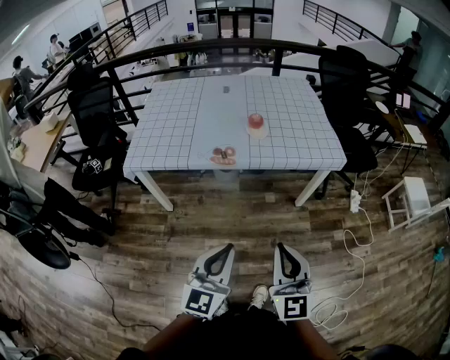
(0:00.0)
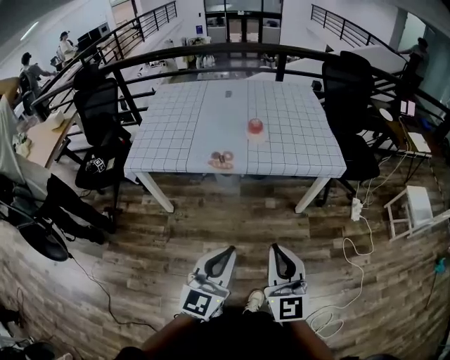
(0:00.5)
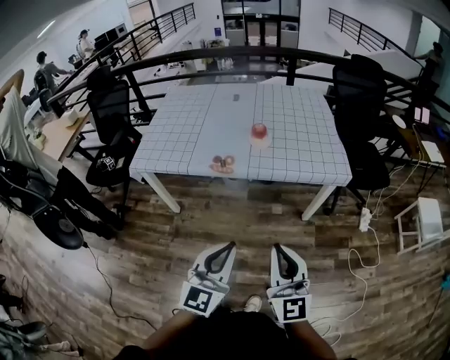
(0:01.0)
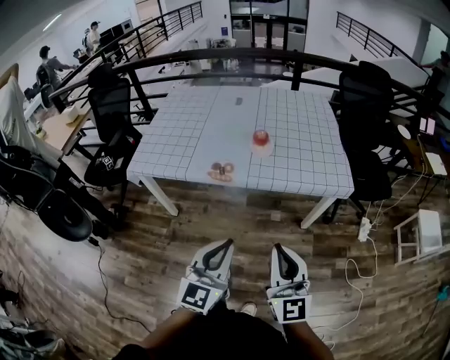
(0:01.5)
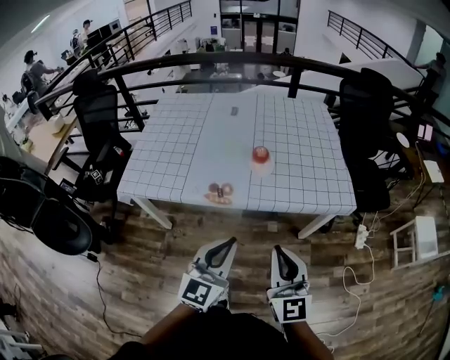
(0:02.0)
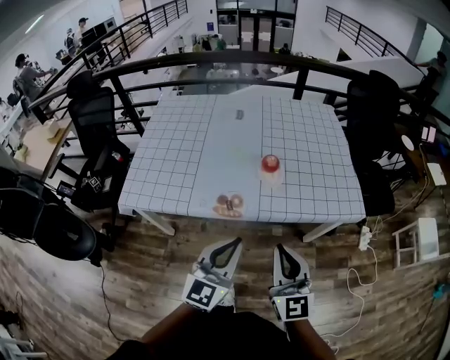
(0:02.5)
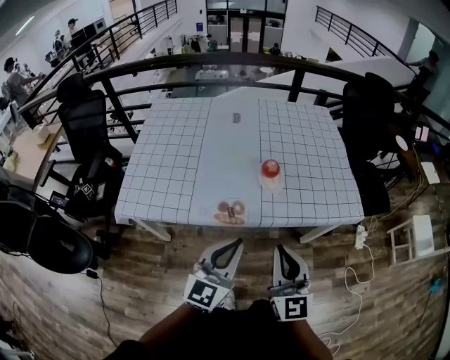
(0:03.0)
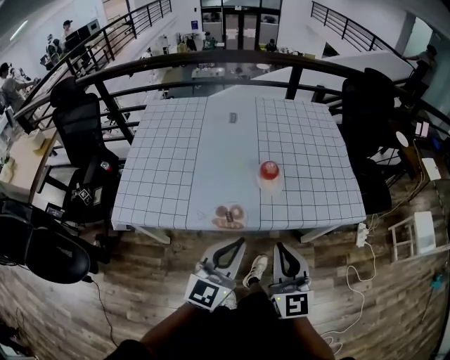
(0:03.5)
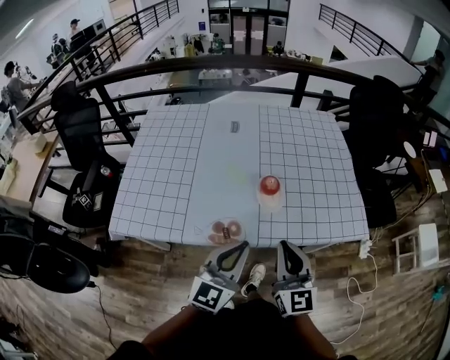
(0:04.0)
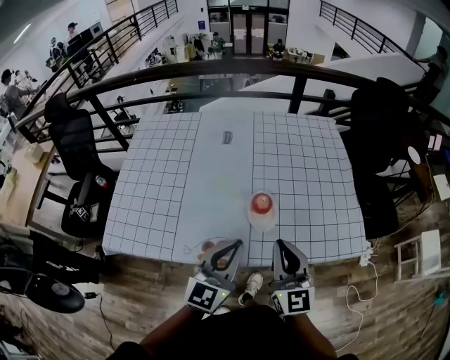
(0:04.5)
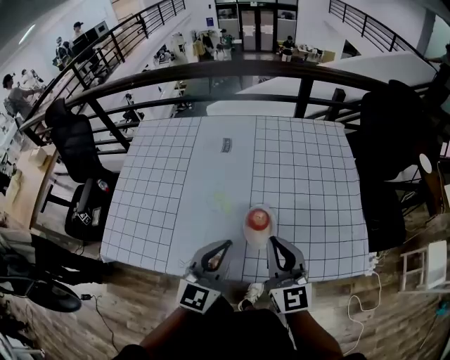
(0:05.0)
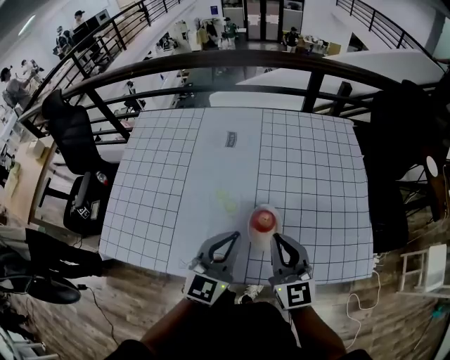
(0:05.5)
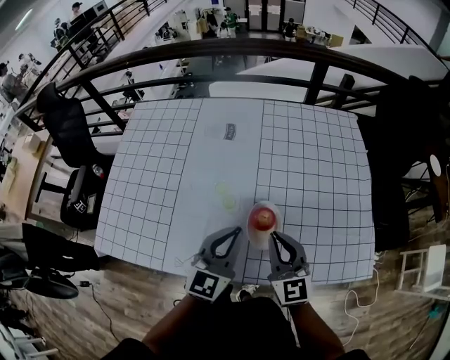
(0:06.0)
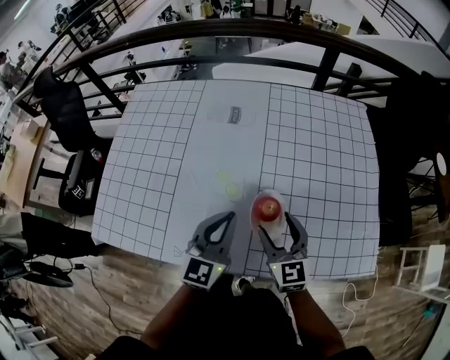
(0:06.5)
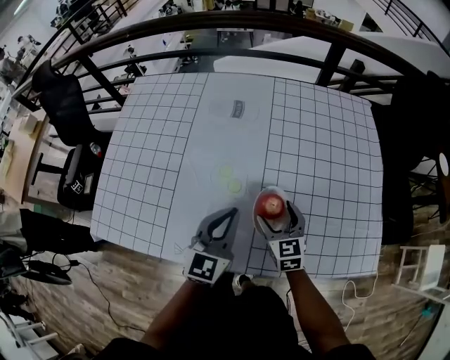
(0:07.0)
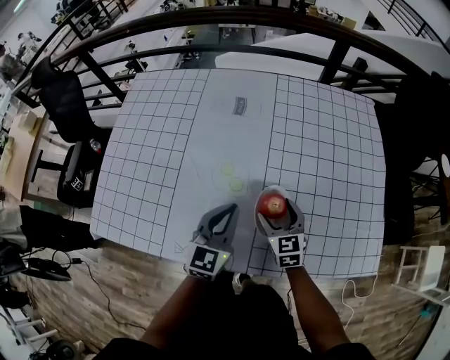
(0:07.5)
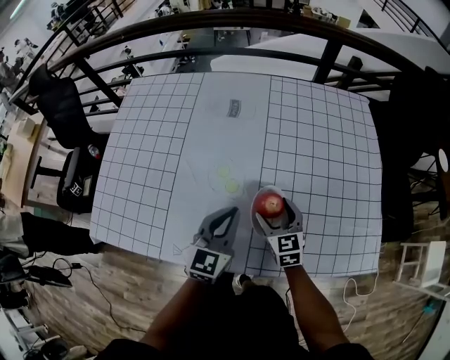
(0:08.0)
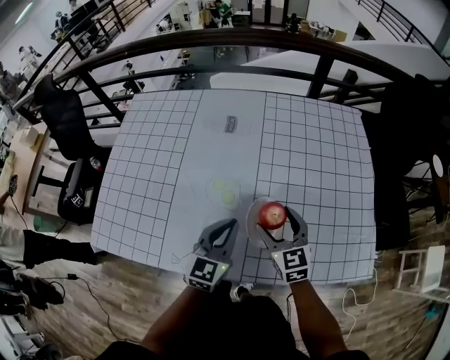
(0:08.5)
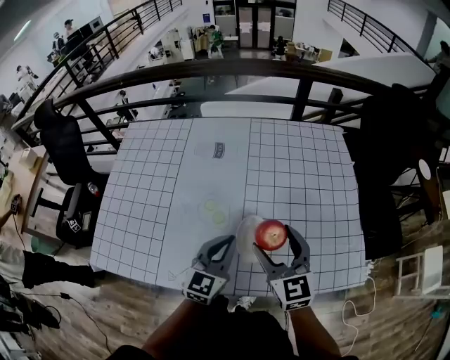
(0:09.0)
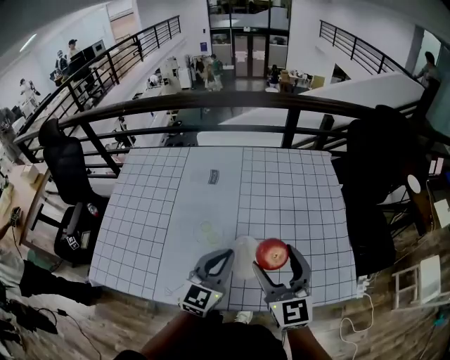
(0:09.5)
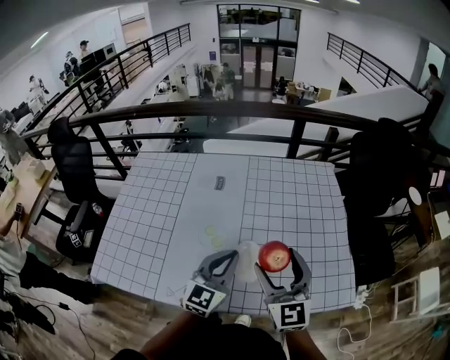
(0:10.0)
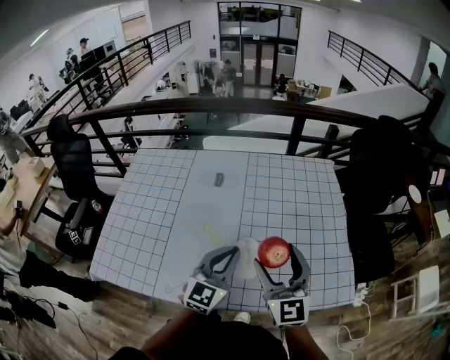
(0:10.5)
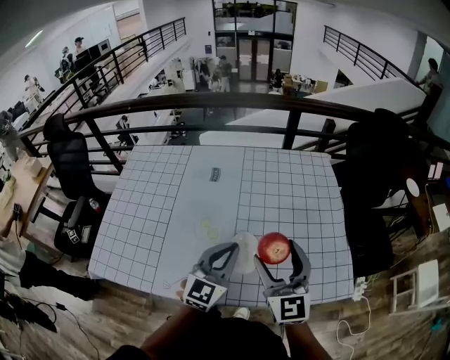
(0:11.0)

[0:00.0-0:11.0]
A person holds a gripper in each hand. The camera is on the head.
0:00.0 to 0:02.0: The two grippers go about 20 cm forward.
0:02.0 to 0:03.5: The grippers both shift forward and to the left by approximately 15 cm.
0:03.5 to 0:05.5: The two grippers go roughly 30 cm forward.
0:05.5 to 0:07.5: The left gripper travels downward and forward by approximately 10 cm. Meanwhile the right gripper travels downward by some 20 cm, swivels some 30 degrees, and opens its fingers.
0:07.5 to 0:09.0: The right gripper is displaced upward by roughly 20 cm. The left gripper heads to the right, covering approximately 5 cm.
0:09.0 to 0:11.0: The two grippers go some 10 cm upward.

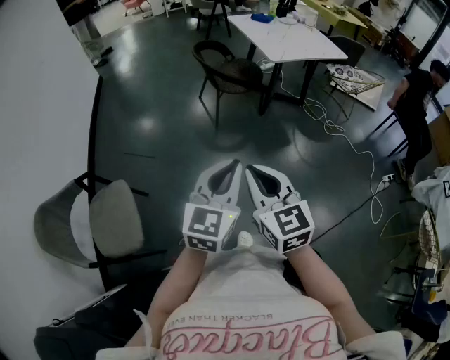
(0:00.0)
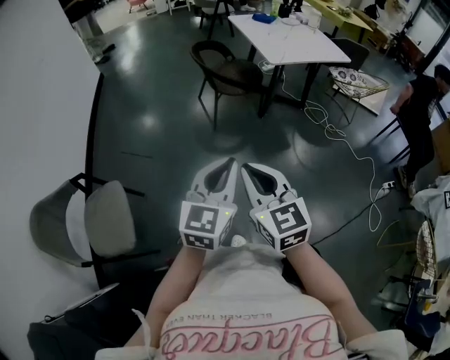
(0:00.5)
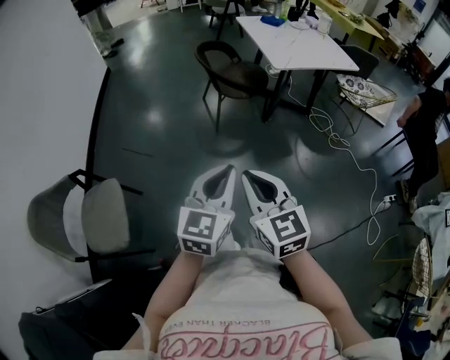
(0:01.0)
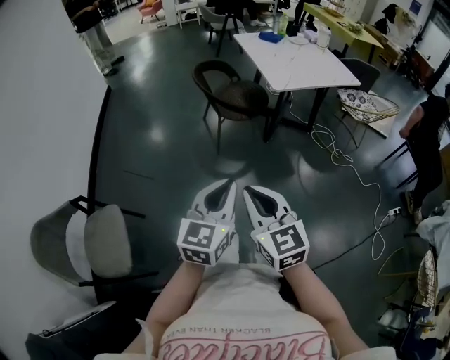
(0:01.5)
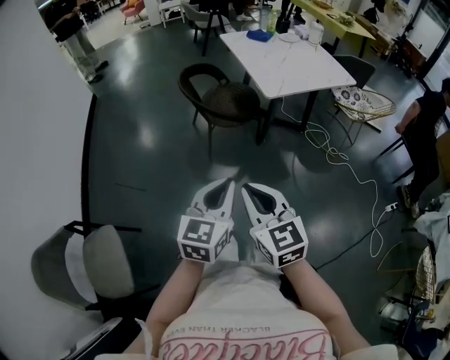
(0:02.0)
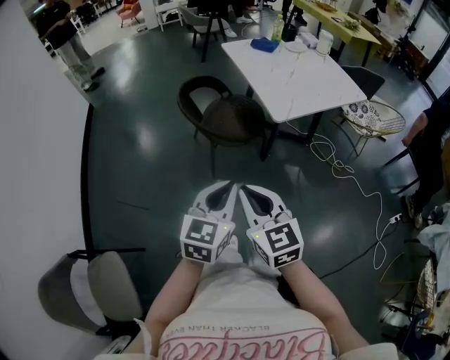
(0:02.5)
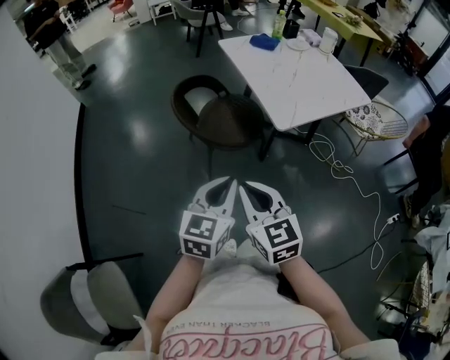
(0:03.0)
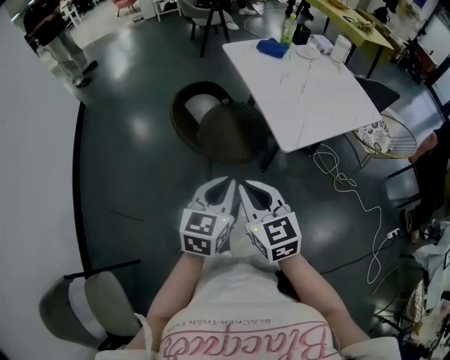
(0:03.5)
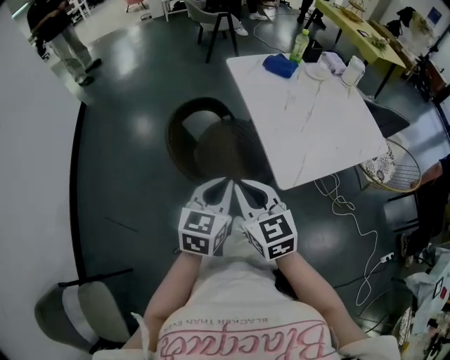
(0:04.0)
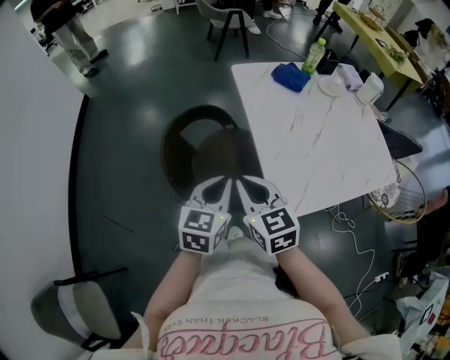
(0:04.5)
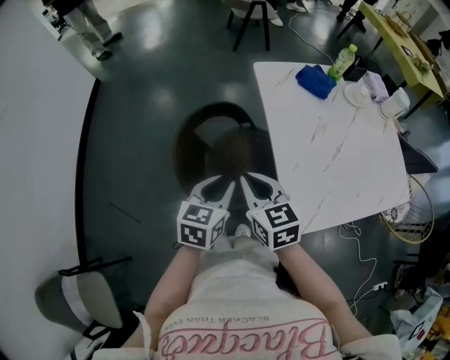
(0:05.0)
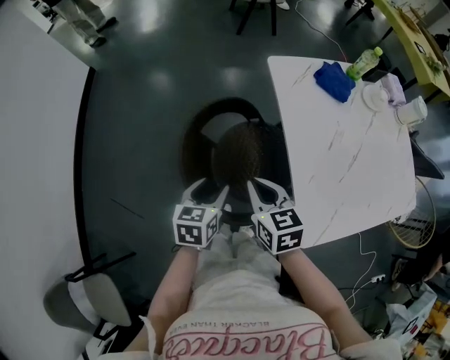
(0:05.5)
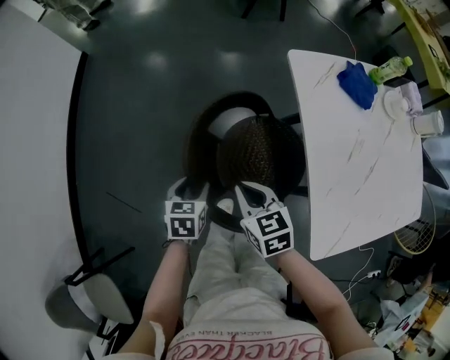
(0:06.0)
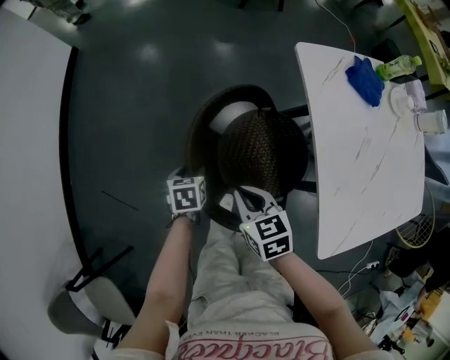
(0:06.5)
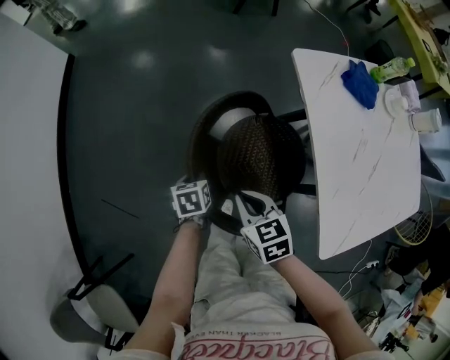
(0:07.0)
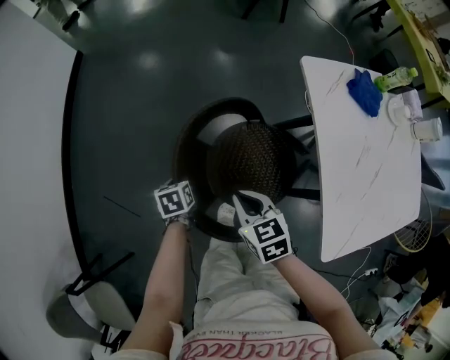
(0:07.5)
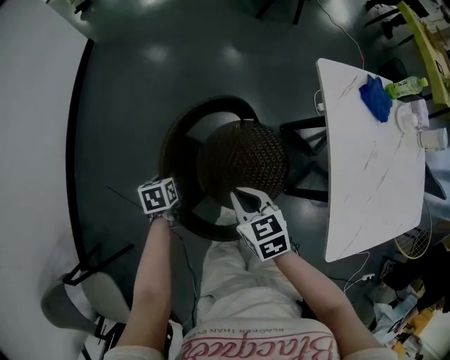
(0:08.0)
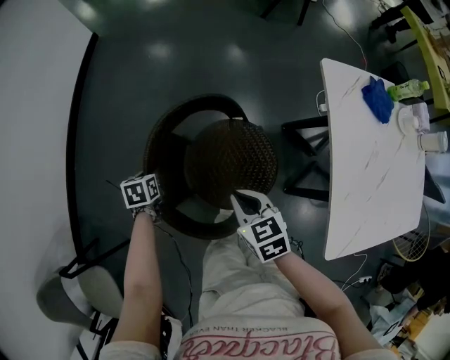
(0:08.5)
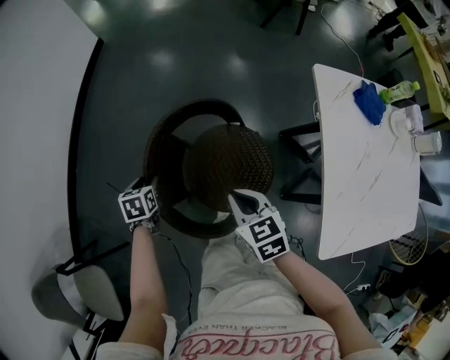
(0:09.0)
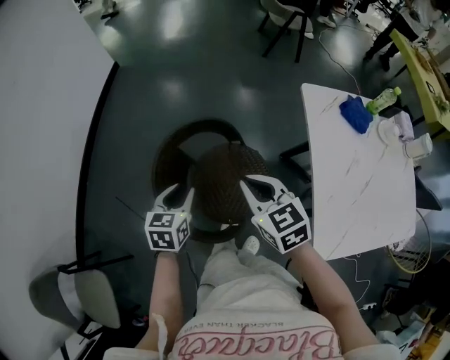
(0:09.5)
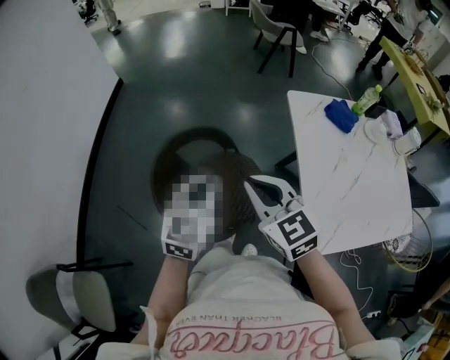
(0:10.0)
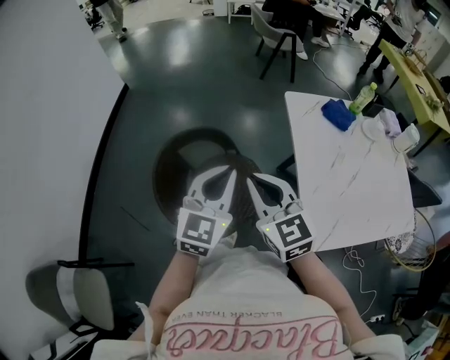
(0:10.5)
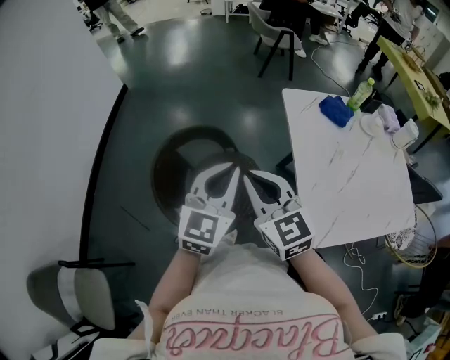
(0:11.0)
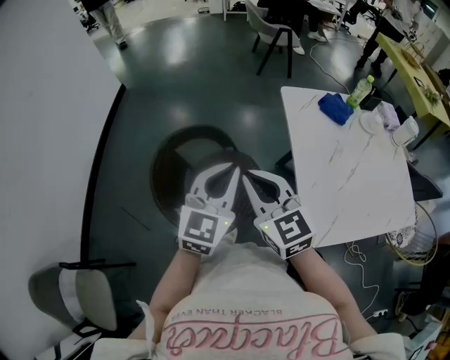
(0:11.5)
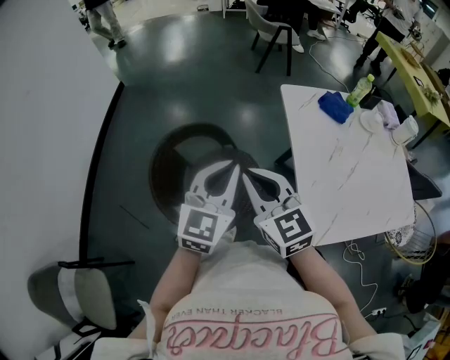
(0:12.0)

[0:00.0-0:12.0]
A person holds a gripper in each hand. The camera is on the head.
0:00.0 to 0:02.0: The two grippers go some 25 cm forward.
0:02.0 to 0:04.0: Both grippers are carried forward, about 50 cm.
0:04.0 to 0:06.0: The right gripper travels forward and downward by approximately 35 cm, and rotates approximately 30 degrees; the left gripper is displaced forward, downward and to the left by about 40 cm, points its fingers roughly 30 degrees further downward, and opens its fingers.
0:06.0 to 0:08.0: The right gripper goes roughly 10 cm to the left. Meanwhile the left gripper travels to the left and downward by about 20 cm, swivels about 20 degrees, and closes up.
0:08.0 to 0:10.0: The left gripper shifts roughly 40 cm upward, to the right and backward, tips its fingers upward by some 50 degrees, and opens, then closes once more. The right gripper goes about 25 cm upward and backward, and changes its angle by approximately 30 degrees.
0:10.0 to 0:12.0: The left gripper heads to the right, covering roughly 5 cm.

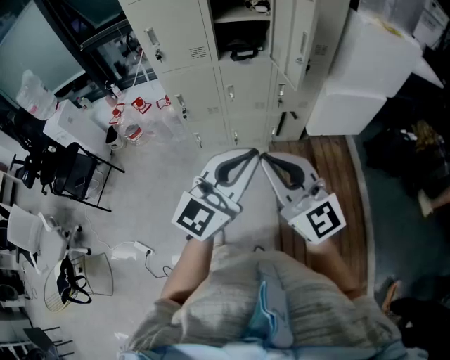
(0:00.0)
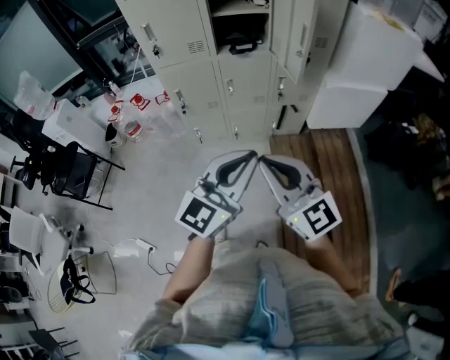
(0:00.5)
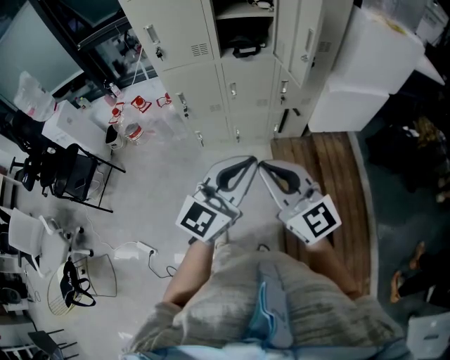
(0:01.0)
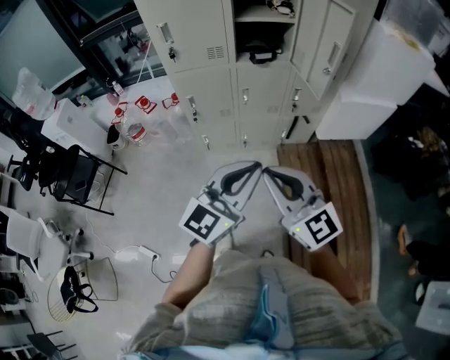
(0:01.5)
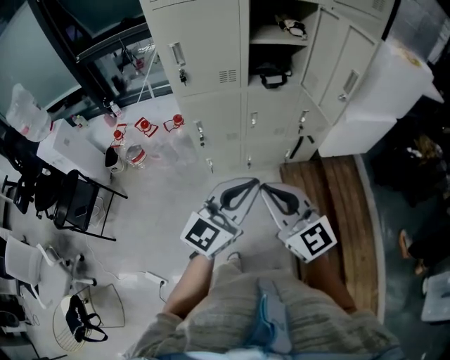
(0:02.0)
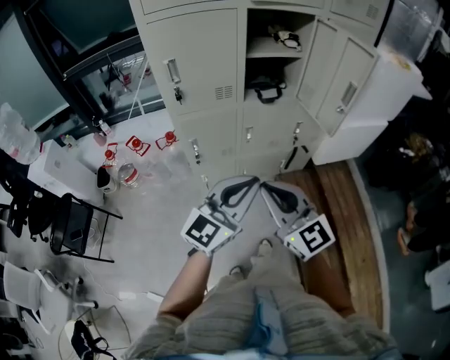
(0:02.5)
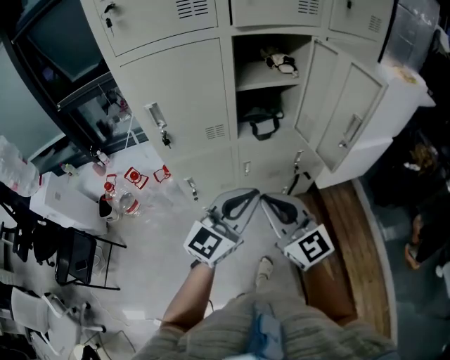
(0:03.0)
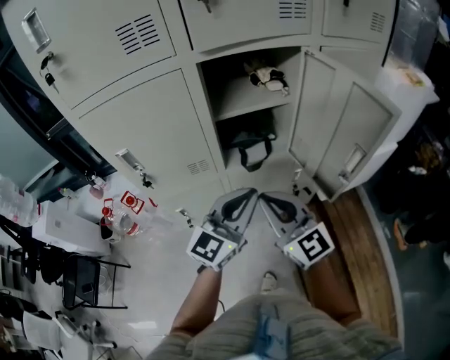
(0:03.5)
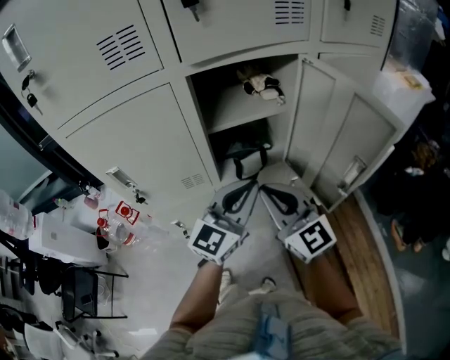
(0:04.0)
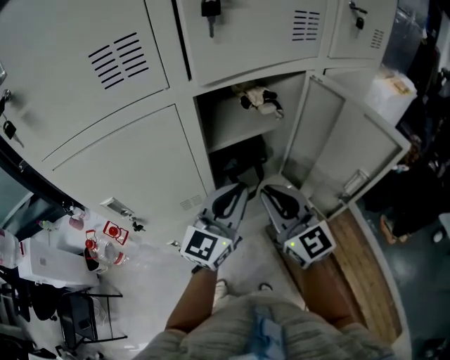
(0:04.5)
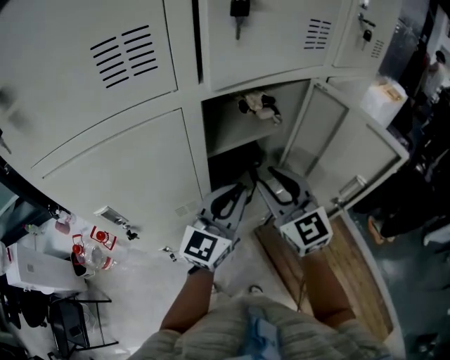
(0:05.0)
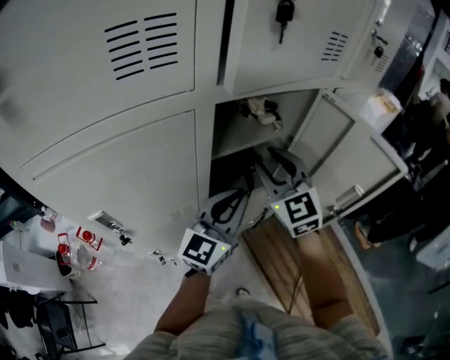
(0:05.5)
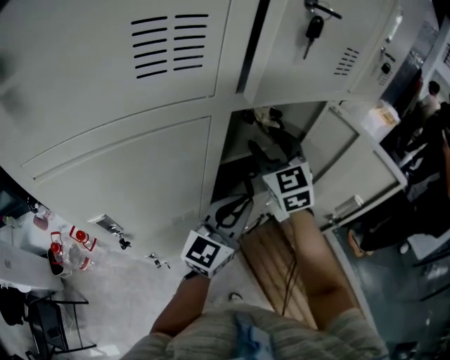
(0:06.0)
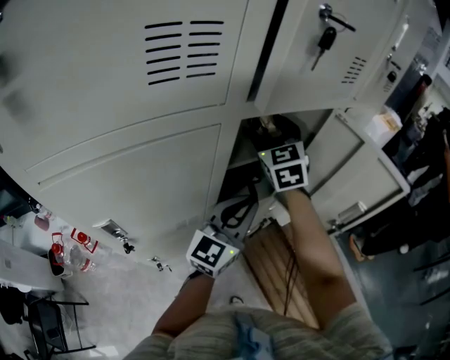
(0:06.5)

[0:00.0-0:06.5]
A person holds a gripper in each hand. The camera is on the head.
0:00.0 to 0:02.0: Both grippers travel together to the left and forward, roughly 20 cm.
0:02.0 to 0:04.5: The two grippers travel together, forward, roughly 40 cm. The right gripper swivels some 20 degrees.
0:04.5 to 0:06.5: The right gripper shifts about 25 cm forward, rotates approximately 40 degrees, and opens its fingers.
